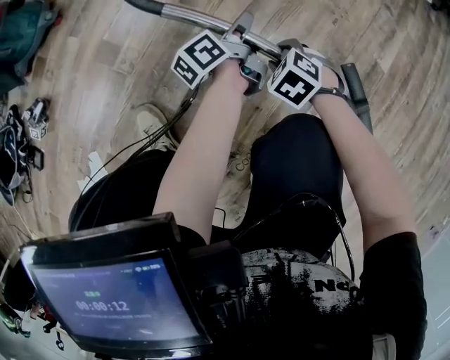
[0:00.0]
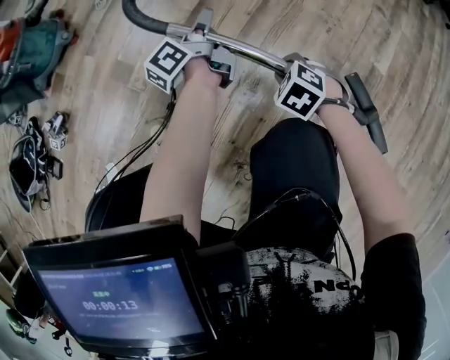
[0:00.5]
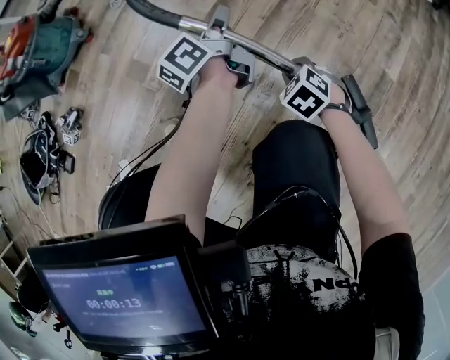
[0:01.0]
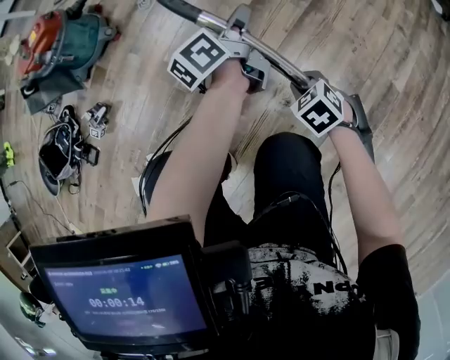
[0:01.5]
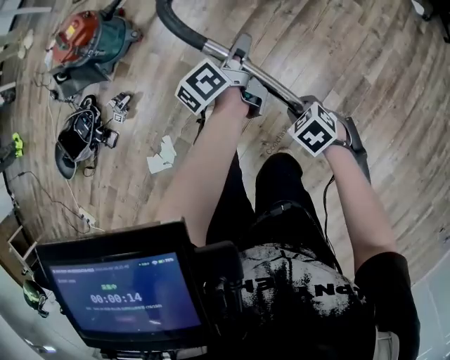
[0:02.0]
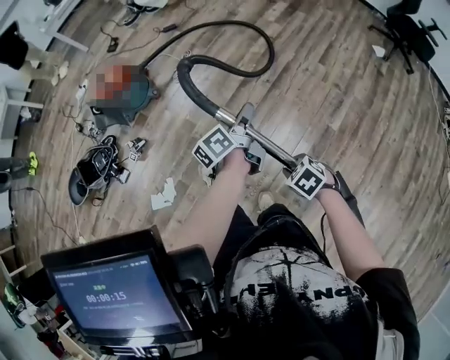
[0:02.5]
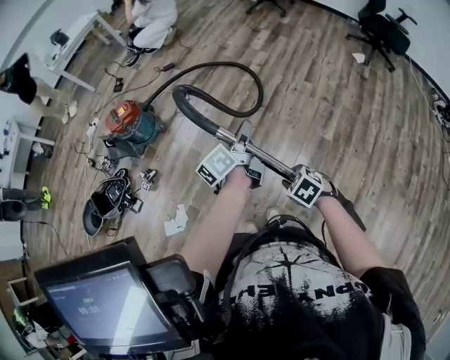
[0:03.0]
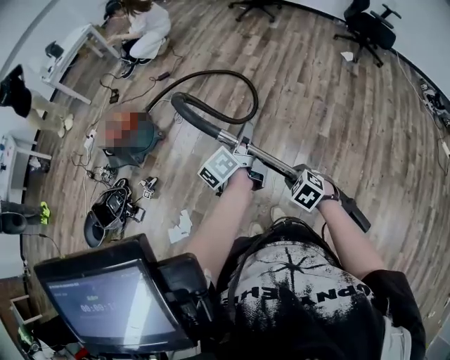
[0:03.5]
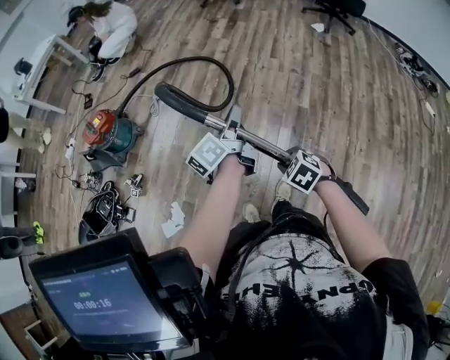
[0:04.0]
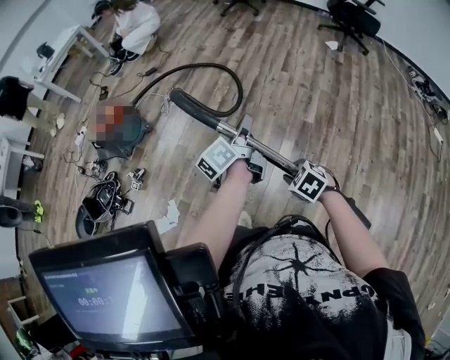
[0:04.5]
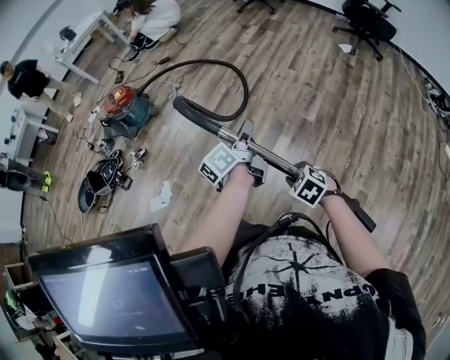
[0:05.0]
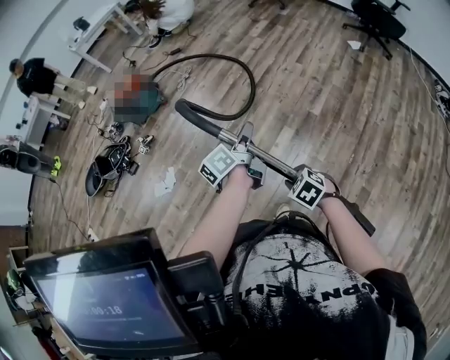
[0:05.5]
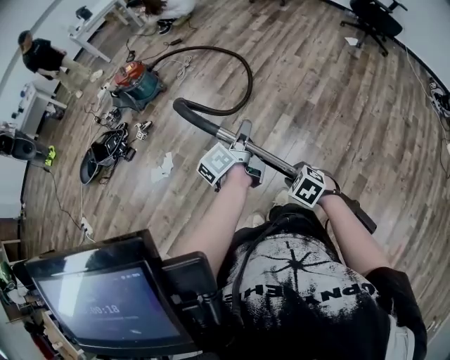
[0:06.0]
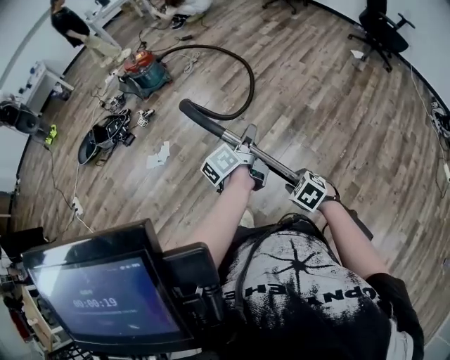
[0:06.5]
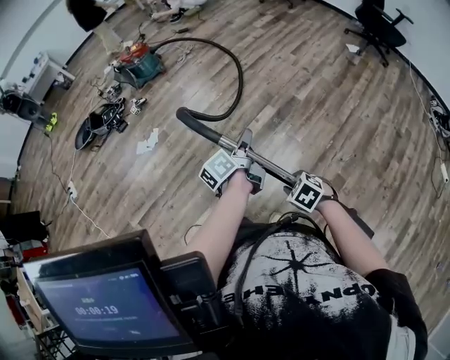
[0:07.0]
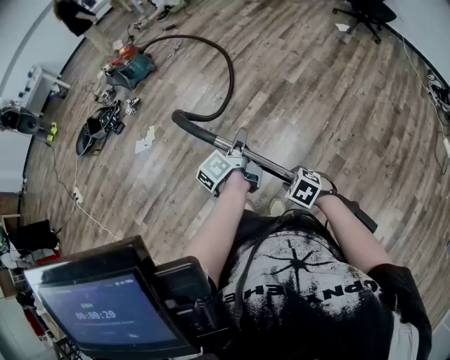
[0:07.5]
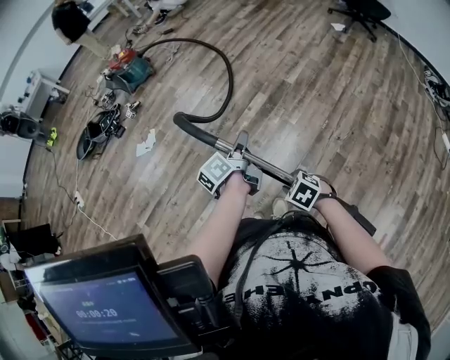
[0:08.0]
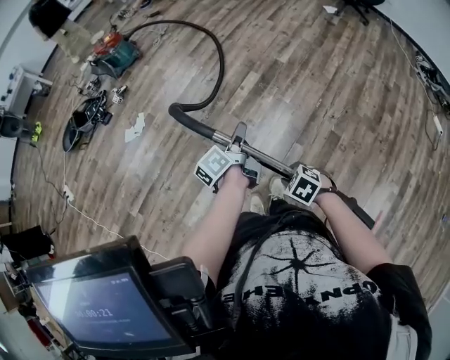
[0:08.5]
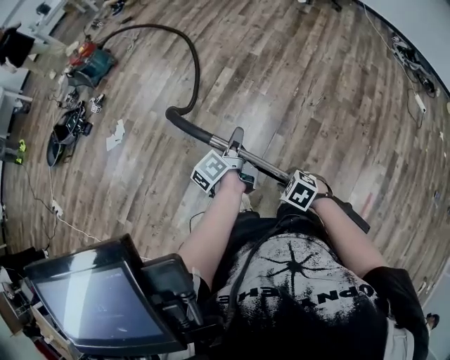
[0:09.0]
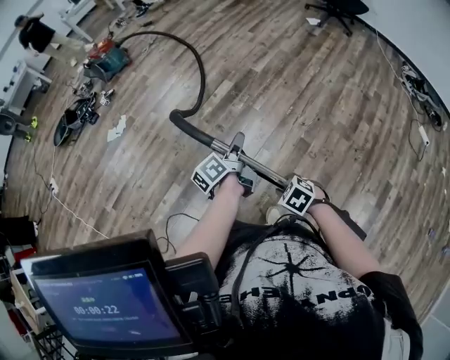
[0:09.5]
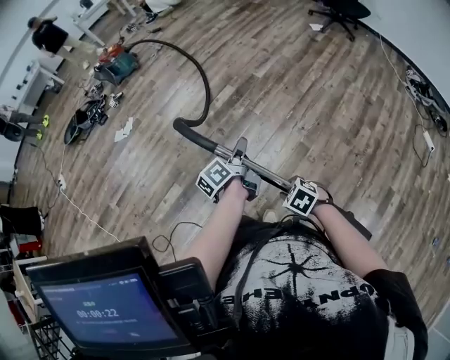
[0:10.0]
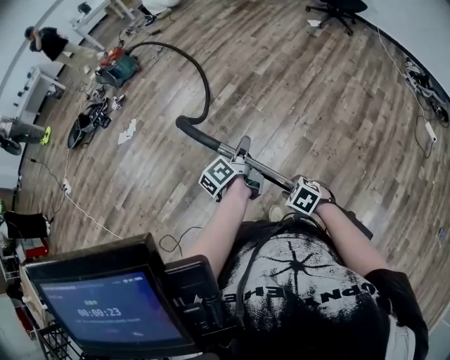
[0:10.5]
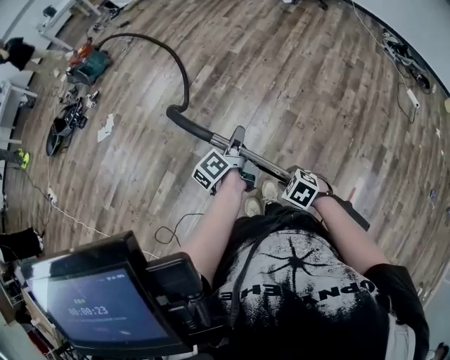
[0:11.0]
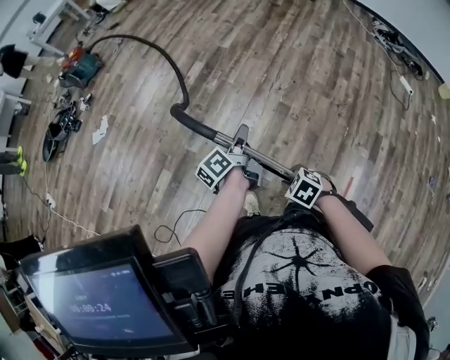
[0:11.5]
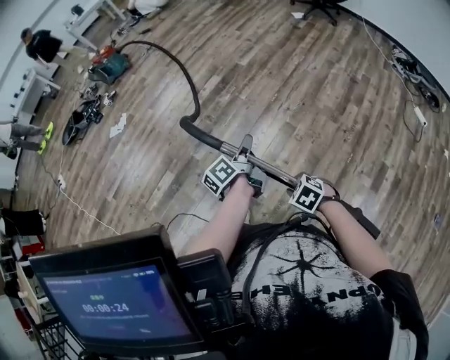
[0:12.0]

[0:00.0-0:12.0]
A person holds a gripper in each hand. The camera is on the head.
0:00.0 to 0:02.0: Both grippers move upward, roughly 40 cm. The right gripper changes its angle by roughly 20 degrees, and closes up.
0:02.0 to 0:04.0: The two grippers go roughly 30 cm upward. The left gripper changes its angle by about 20 degrees.
0:04.0 to 0:06.0: Both grippers move backward, approximately 35 cm.
0:06.0 to 0:08.0: The right gripper travels backward and to the right by some 30 cm; the left gripper shifts roughly 30 cm backward.
0:08.0 to 0:10.0: Both grippers travel together backward and to the right, some 30 cm.
0:10.0 to 0:12.0: The grippers both shift backward by roughly 15 cm.

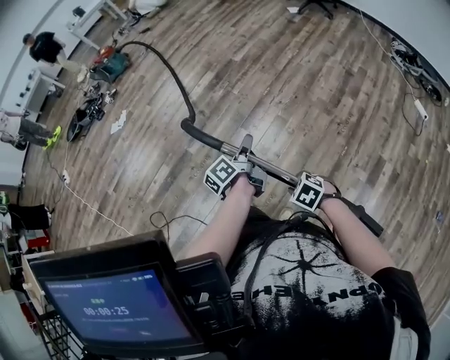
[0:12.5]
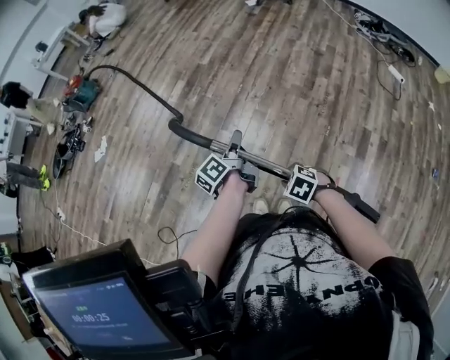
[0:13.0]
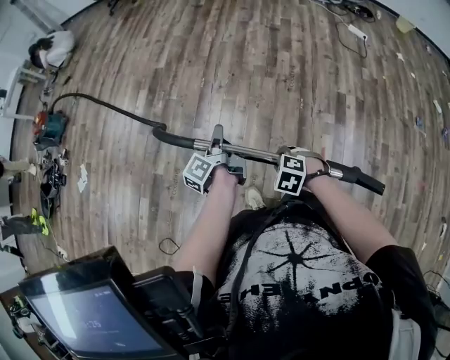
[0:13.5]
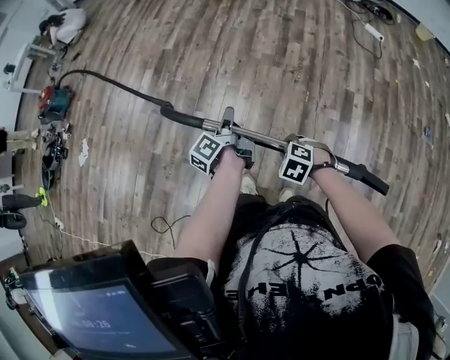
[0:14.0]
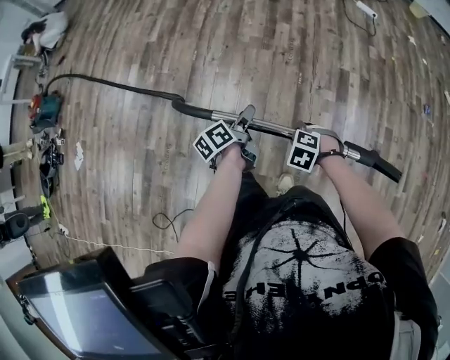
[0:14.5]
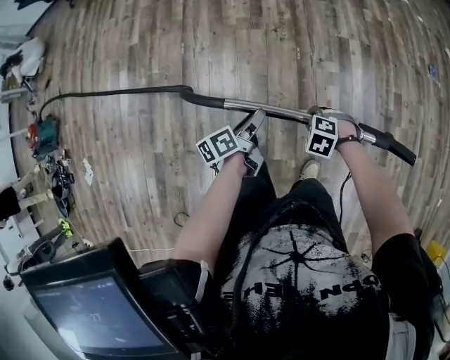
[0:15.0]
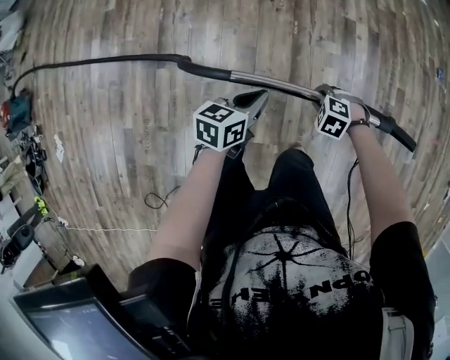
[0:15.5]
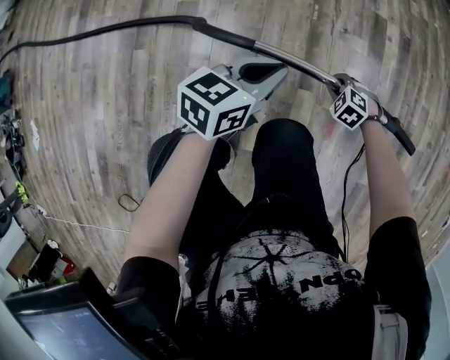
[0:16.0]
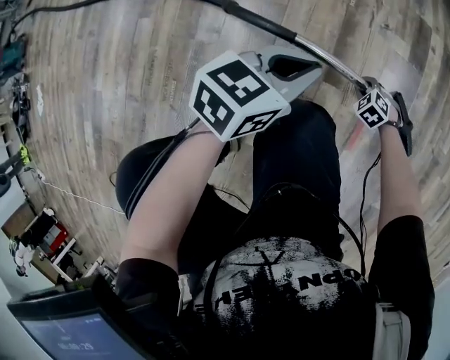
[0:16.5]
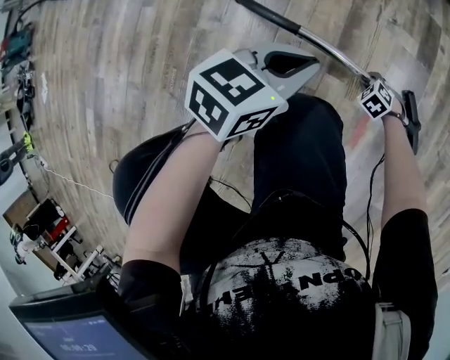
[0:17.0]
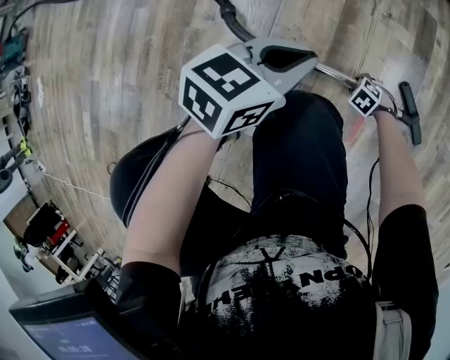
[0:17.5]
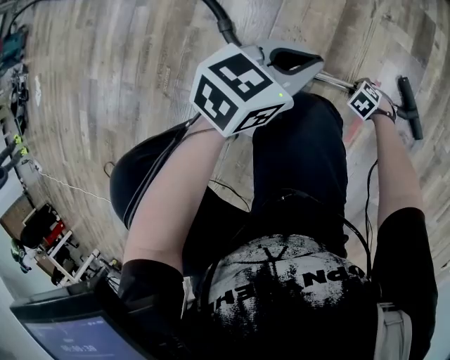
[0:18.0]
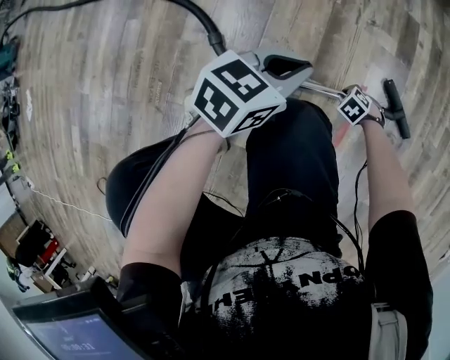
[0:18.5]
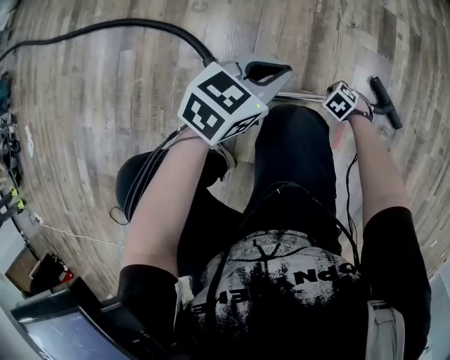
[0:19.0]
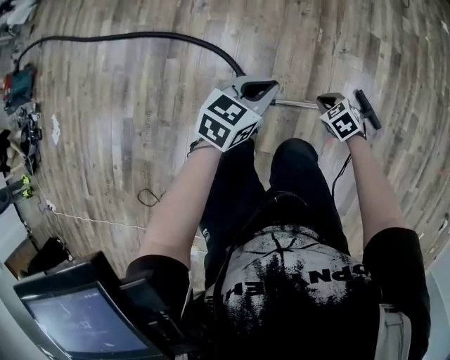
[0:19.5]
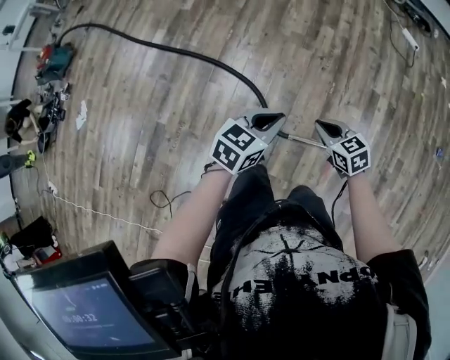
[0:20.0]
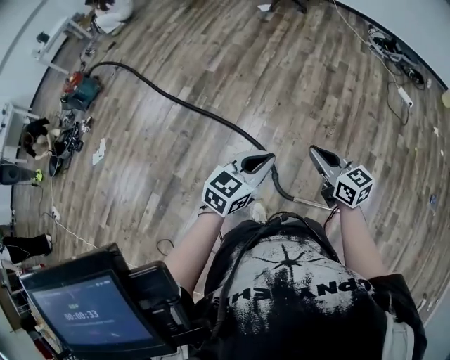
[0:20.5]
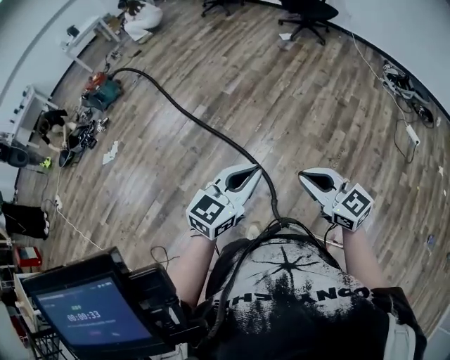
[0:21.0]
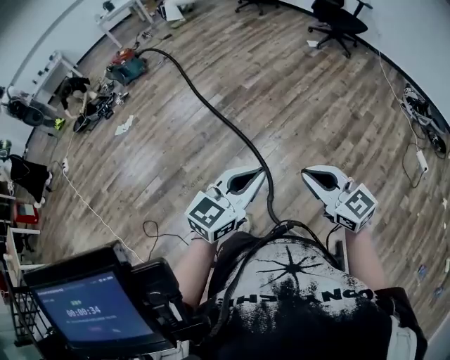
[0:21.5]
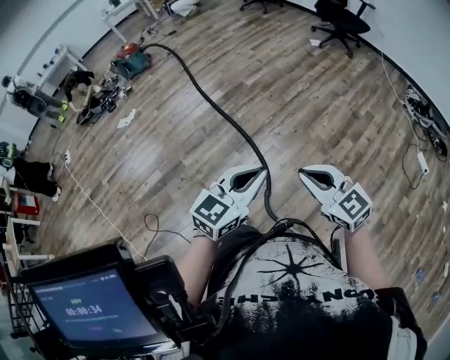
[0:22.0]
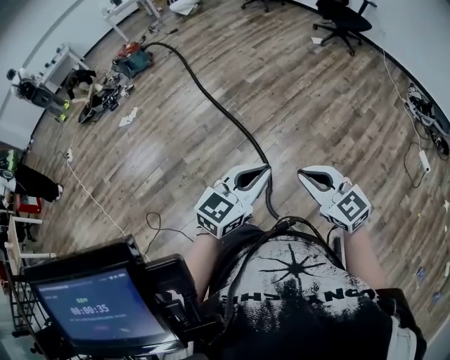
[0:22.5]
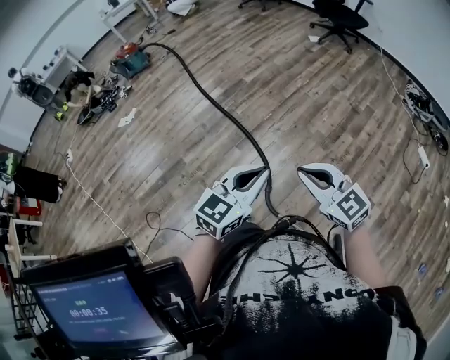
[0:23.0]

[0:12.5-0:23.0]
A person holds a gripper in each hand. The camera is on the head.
0:12.5 to 0:14.5: The right gripper shifts by roughly 15 cm, and changes its angle by some 20 degrees, while the left gripper ends up approximately 25 cm from where it was, changes its angle by some 40 degrees, and opens.
0:14.5 to 0:16.5: The right gripper shifts roughly 60 cm downward; the left gripper shifts about 35 cm downward, twists some 60 degrees clockwise, seen from behind, and closes up.
0:16.5 to 0:19.0: The right gripper reaches some 5 cm downward, then returns, and opens, then closes again.
0:19.0 to 0:21.0: Both grippers move upward, roughly 80 cm. The left gripper swivels about 40 degrees, while the right gripper points its fingers some 70 degrees further upward.
0:21.0 to 0:23.0: Both grippers move backward and to the right, about 15 cm.

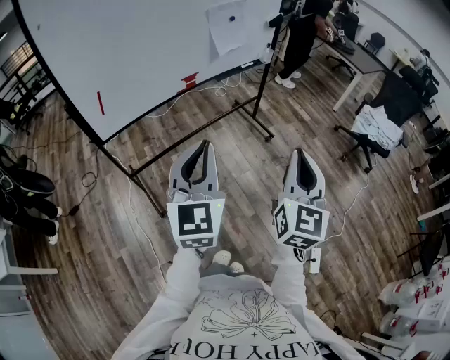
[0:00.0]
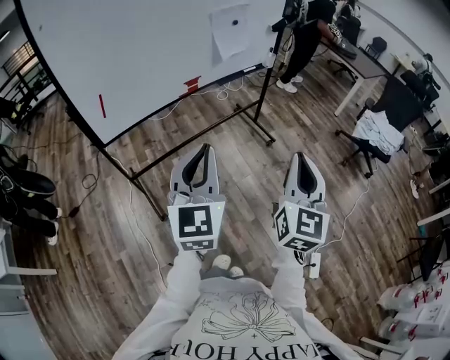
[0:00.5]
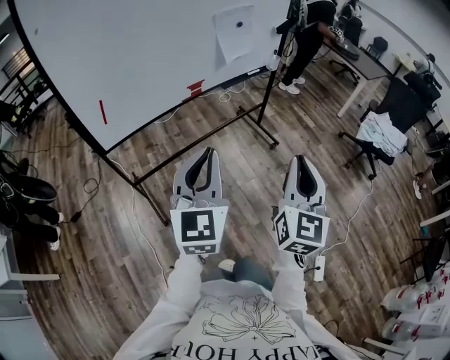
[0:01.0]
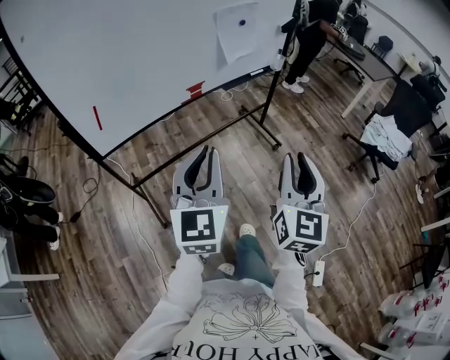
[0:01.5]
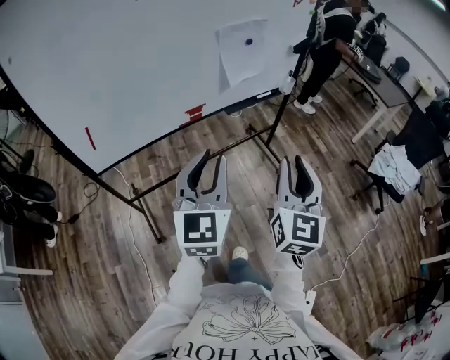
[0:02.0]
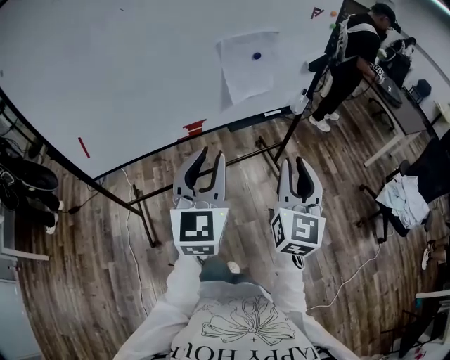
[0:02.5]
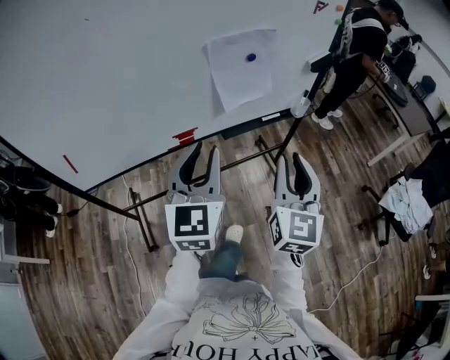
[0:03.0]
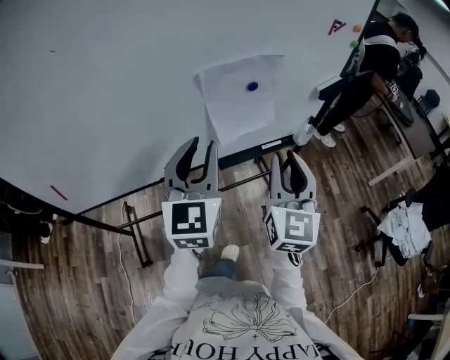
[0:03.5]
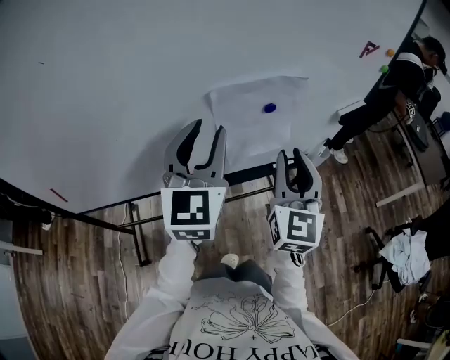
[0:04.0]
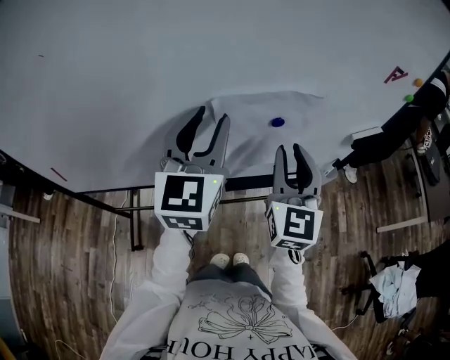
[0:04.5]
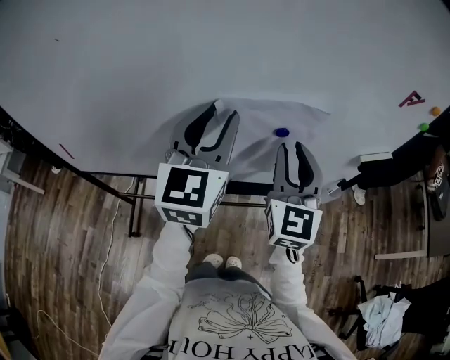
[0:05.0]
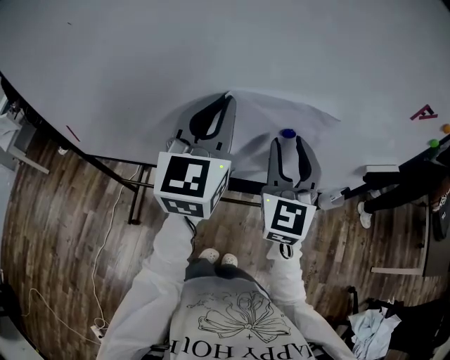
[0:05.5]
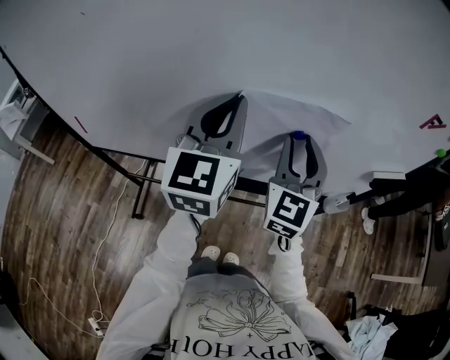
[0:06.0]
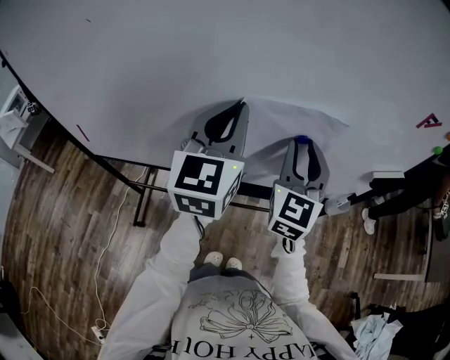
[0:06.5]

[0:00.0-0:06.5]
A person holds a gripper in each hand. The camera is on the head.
0:00.0 to 0:02.0: Both grippers move forward, some 25 cm.
0:02.0 to 0:04.5: Both grippers are carried forward, some 50 cm. The left gripper swivels about 20 degrees. The right gripper swivels roughly 30 degrees.
0:04.5 to 0:06.5: The left gripper closes up, while the right gripper moves forward, some 5 cm.
